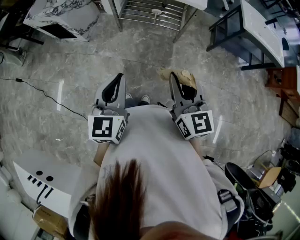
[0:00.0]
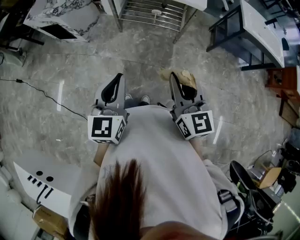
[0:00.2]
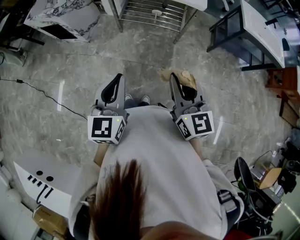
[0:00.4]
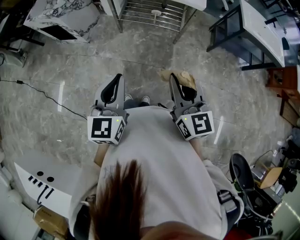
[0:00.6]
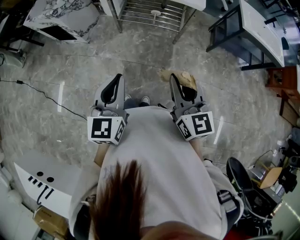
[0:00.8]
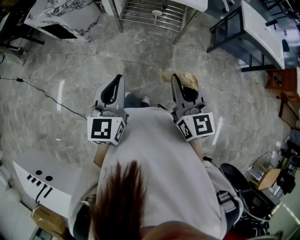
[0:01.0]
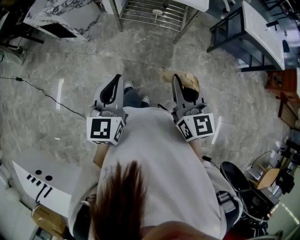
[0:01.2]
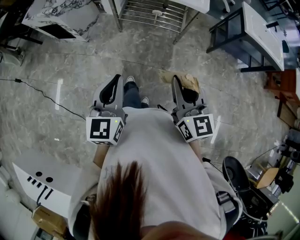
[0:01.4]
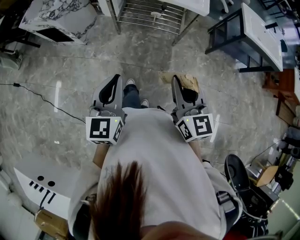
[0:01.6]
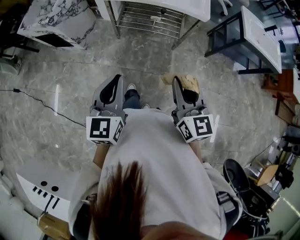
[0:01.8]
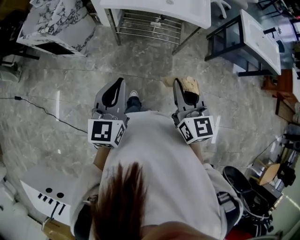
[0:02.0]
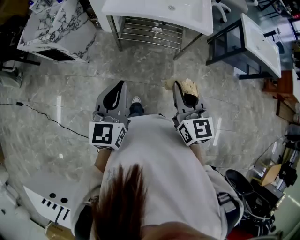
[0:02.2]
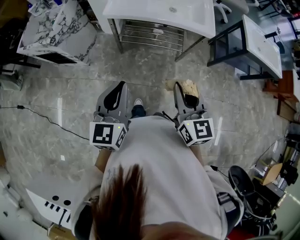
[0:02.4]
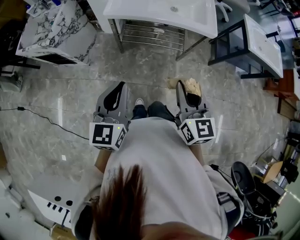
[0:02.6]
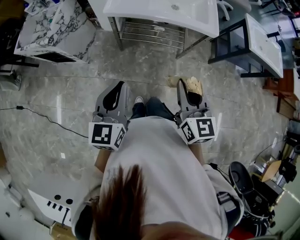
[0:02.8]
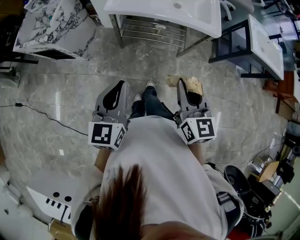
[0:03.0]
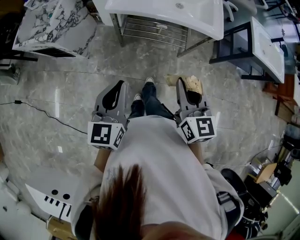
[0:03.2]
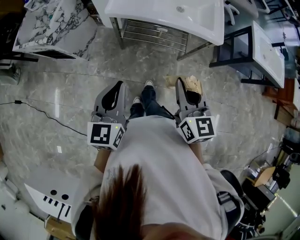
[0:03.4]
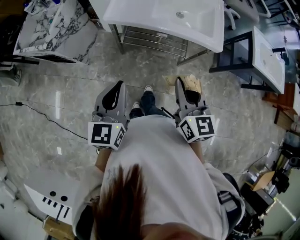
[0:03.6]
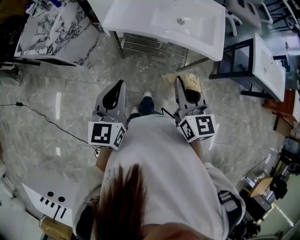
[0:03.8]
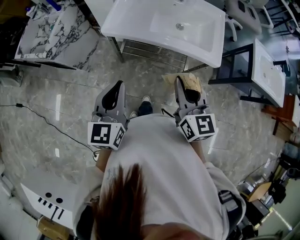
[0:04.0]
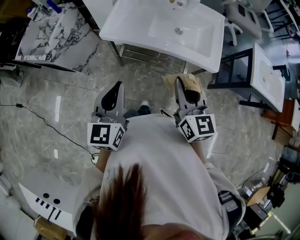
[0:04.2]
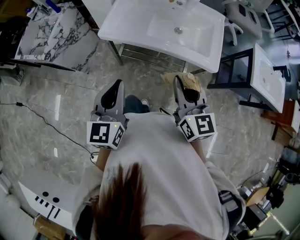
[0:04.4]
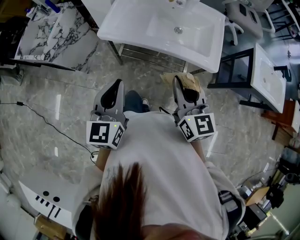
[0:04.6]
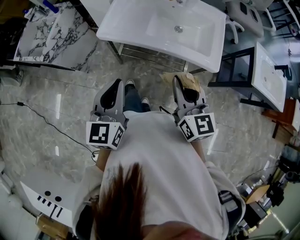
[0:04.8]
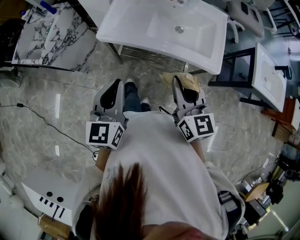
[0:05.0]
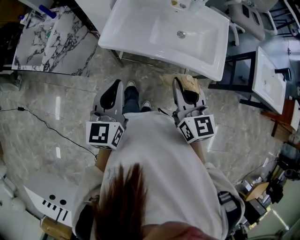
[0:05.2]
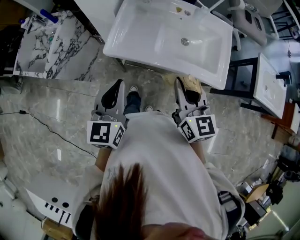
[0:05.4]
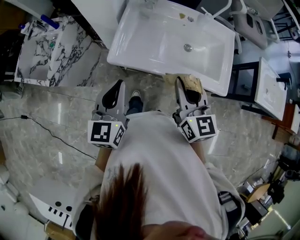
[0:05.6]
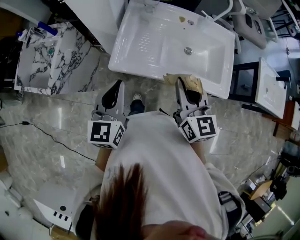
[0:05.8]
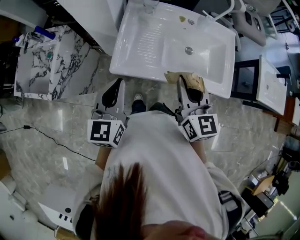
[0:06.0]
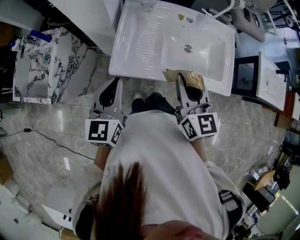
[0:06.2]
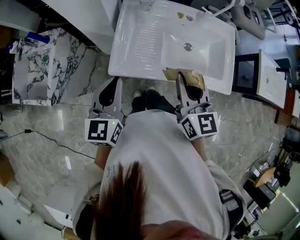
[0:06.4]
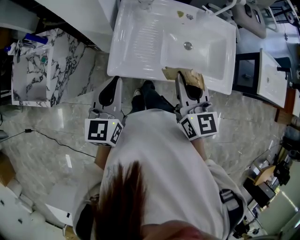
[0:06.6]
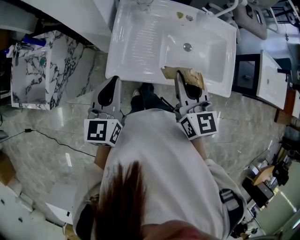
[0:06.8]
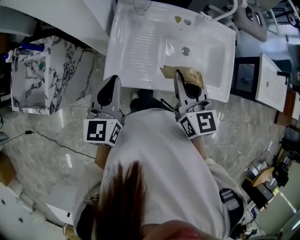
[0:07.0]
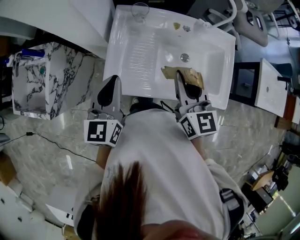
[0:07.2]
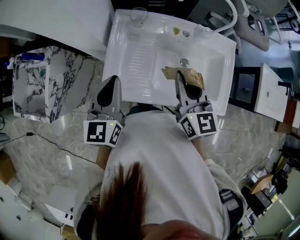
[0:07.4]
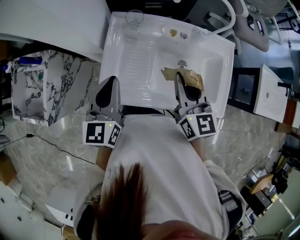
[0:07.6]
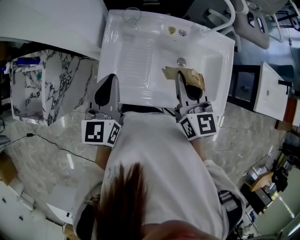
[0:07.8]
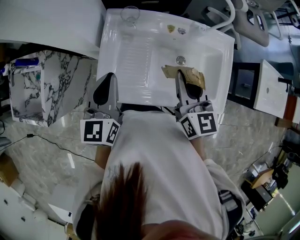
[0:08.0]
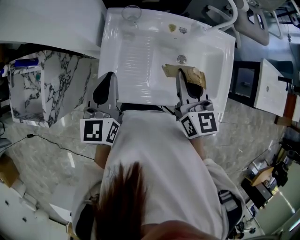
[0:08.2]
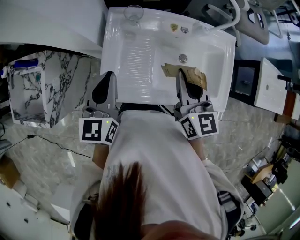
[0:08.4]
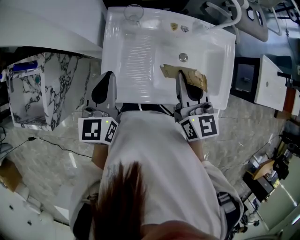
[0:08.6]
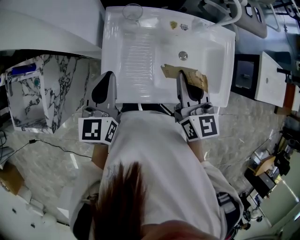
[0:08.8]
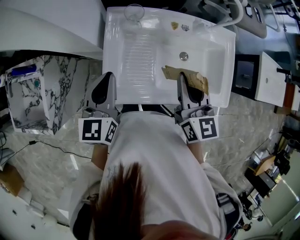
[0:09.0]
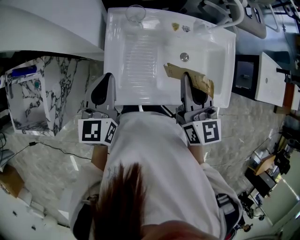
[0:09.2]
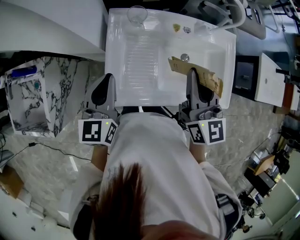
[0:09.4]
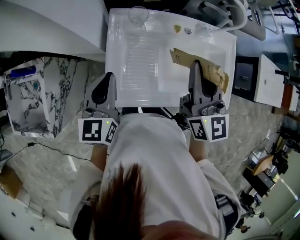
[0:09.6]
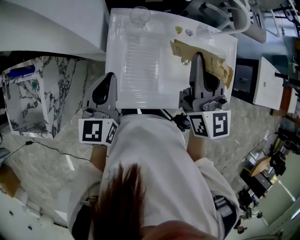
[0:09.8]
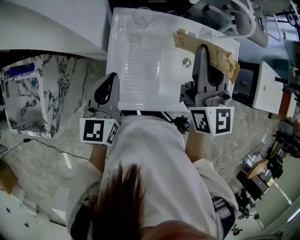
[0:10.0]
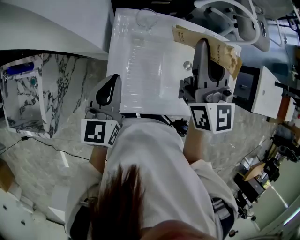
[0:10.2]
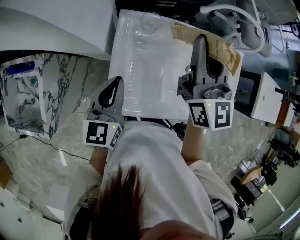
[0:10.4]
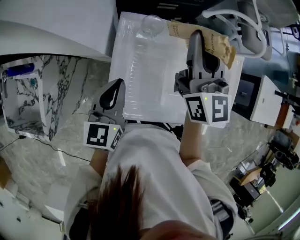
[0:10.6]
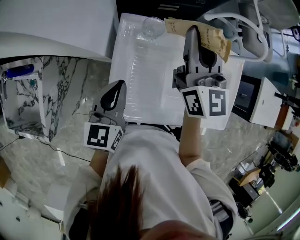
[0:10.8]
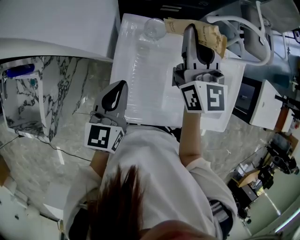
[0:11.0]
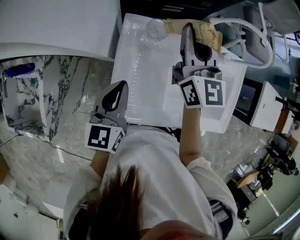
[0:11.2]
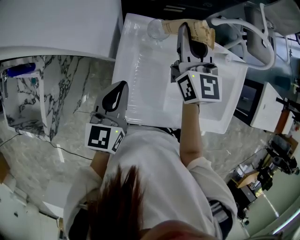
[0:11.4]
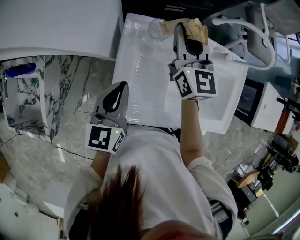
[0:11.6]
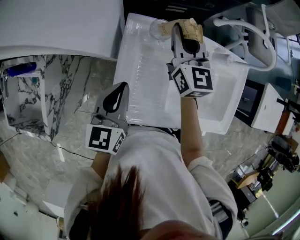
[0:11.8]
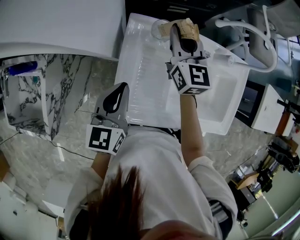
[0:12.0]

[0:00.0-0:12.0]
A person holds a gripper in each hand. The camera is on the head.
0.0 to 1.6 s: The grippers both shift forward by about 5 cm.
1.6 to 3.0 s: Both grippers travel together forward and to the left, about 20 cm.
3.0 to 4.4 s: The grippers both shift forward by some 20 cm.
4.4 to 6.0 s: The two grippers go approximately 25 cm forward and to the left.
6.0 to 7.6 s: The two grippers go about 15 cm forward.
7.6 to 9.0 s: The left gripper ends up approximately 5 cm from where it was.
9.0 to 10.4 s: The left gripper moves approximately 5 cm. The right gripper is displaced forward, upward and to the left by approximately 20 cm.
10.4 to 12.0 s: The right gripper shifts roughly 20 cm downward, forward and to the left.

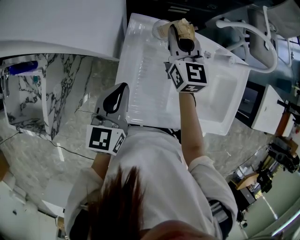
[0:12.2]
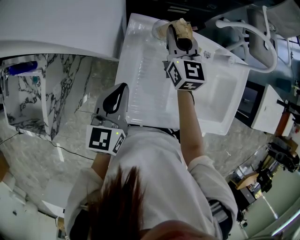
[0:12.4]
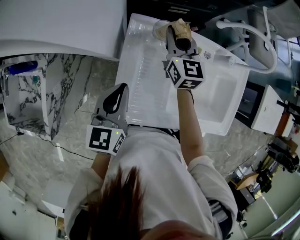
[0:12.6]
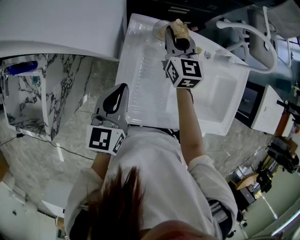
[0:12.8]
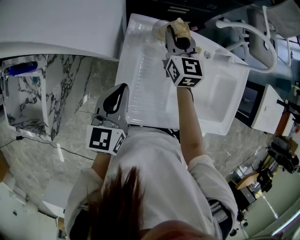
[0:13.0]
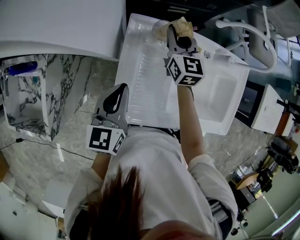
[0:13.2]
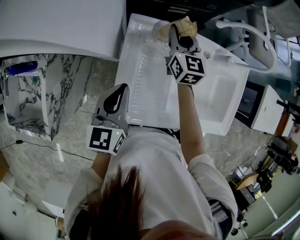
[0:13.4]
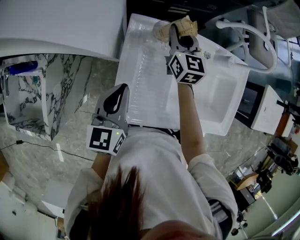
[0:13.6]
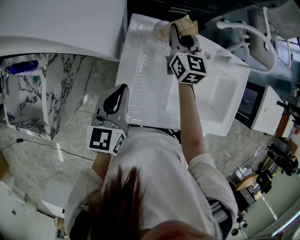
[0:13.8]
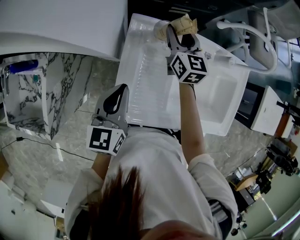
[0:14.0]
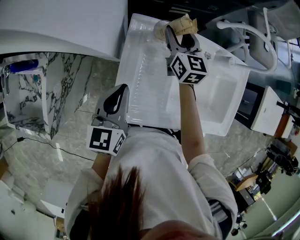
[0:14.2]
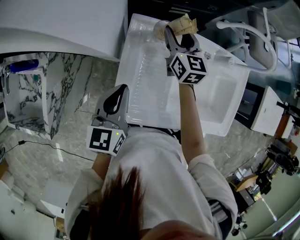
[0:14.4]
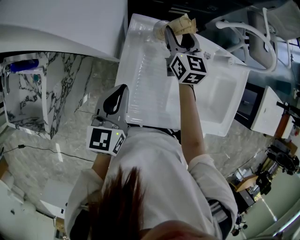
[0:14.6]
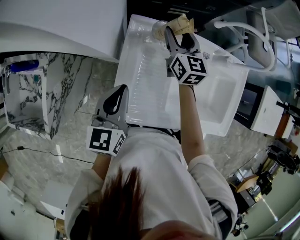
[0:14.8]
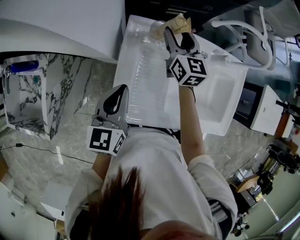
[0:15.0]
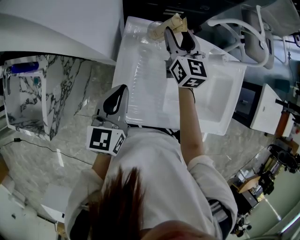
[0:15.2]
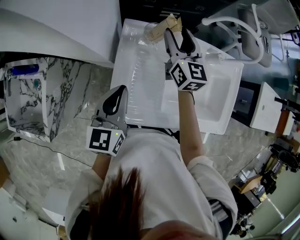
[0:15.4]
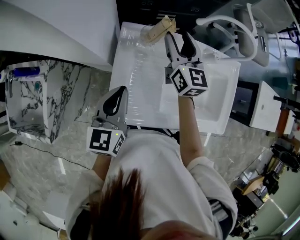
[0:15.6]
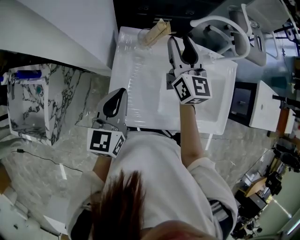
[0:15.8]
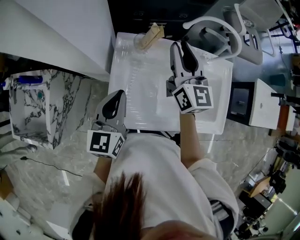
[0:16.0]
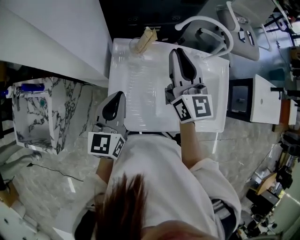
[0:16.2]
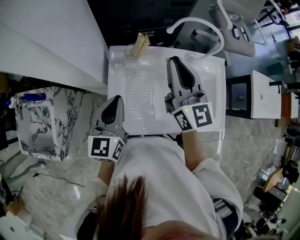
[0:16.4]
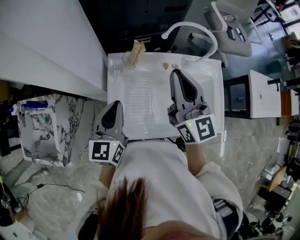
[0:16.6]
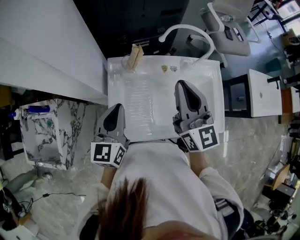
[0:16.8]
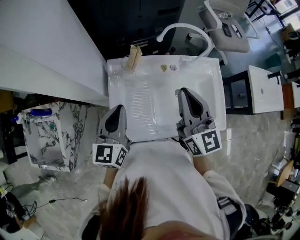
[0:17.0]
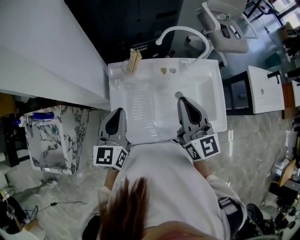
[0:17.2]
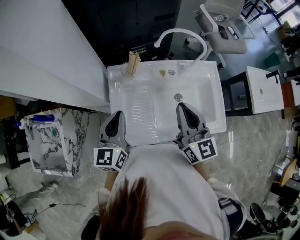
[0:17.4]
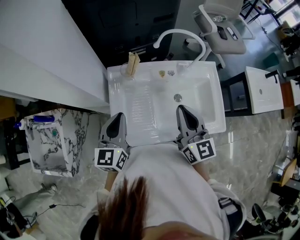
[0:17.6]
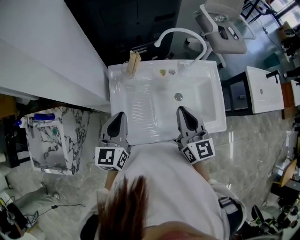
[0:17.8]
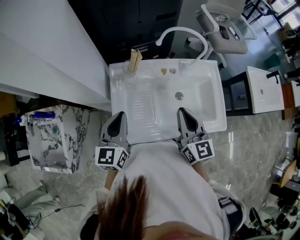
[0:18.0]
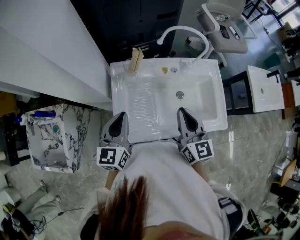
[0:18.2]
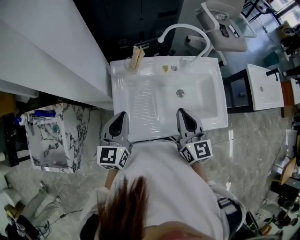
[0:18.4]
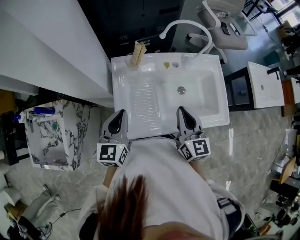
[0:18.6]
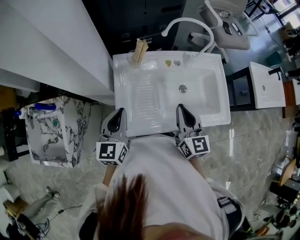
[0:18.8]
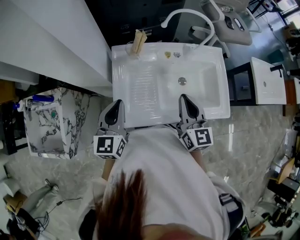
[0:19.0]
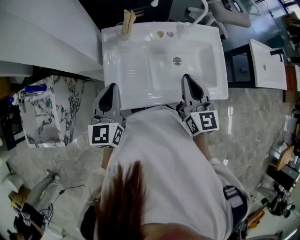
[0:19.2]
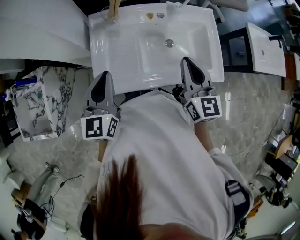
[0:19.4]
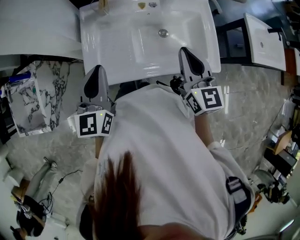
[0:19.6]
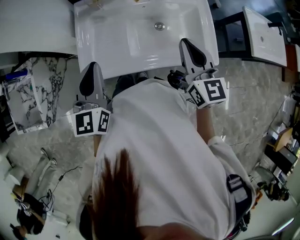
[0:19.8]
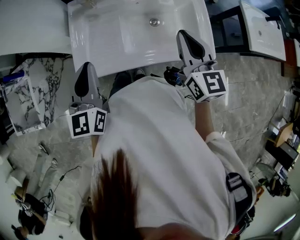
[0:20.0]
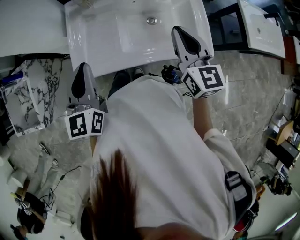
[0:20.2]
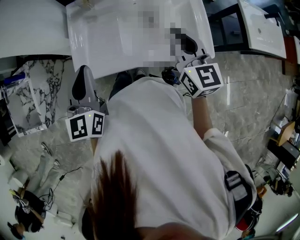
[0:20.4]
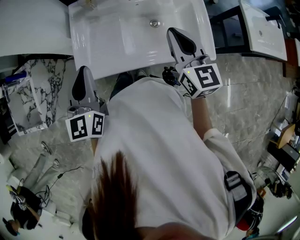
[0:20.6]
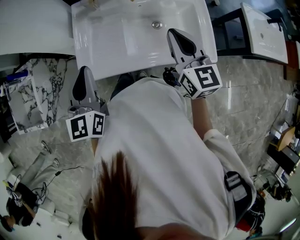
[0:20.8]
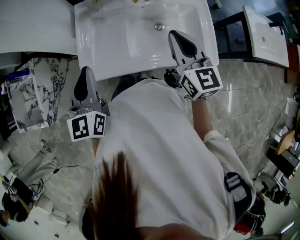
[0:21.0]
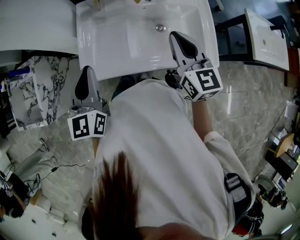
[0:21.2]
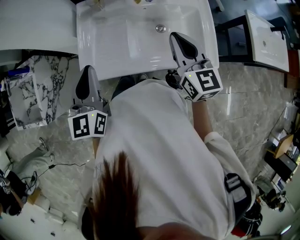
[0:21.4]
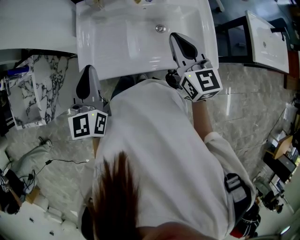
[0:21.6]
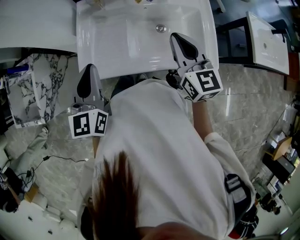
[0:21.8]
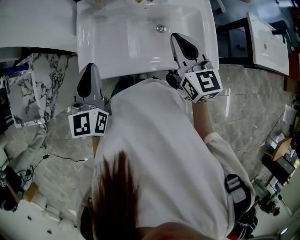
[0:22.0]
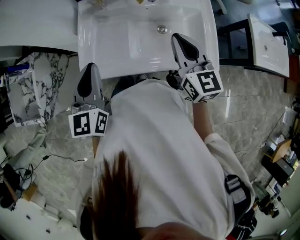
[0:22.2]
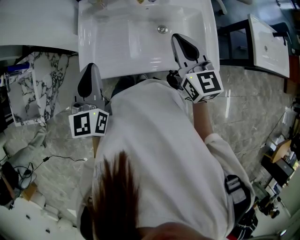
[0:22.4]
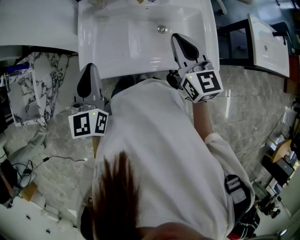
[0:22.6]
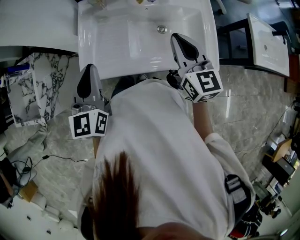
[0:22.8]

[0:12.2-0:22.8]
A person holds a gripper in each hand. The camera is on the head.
12.2 to 13.8 s: The grippers stay close to where they were, moving slightly.
13.8 to 15.2 s: The right gripper opens its fingers.
15.2 to 16.8 s: The right gripper travels upward, backward and to the right by about 30 cm, and closes its fingers; the left gripper moves upward, approximately 10 cm.
16.8 to 18.2 s: The right gripper goes roughly 10 cm downward and backward.
18.2 to 19.8 s: The left gripper heads backward and to the right, covering approximately 10 cm. The right gripper goes about 15 cm to the right and backward.
19.8 to 22.8 s: The grippers stay close to where they were, moving slightly.

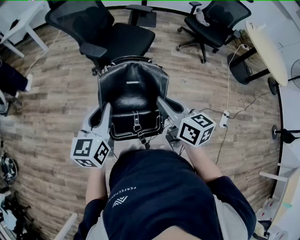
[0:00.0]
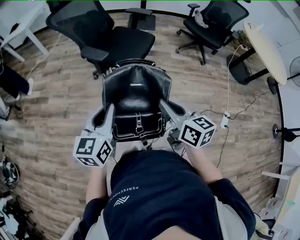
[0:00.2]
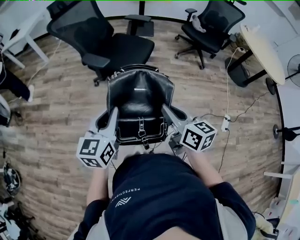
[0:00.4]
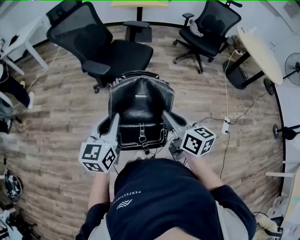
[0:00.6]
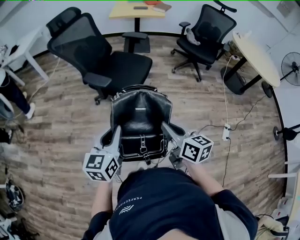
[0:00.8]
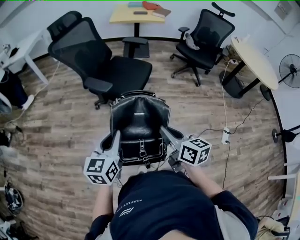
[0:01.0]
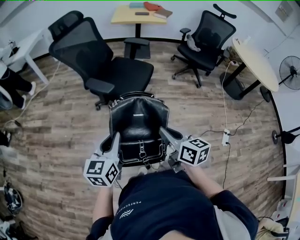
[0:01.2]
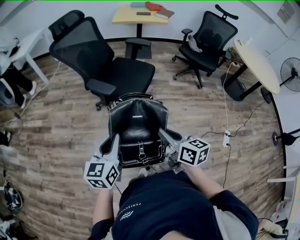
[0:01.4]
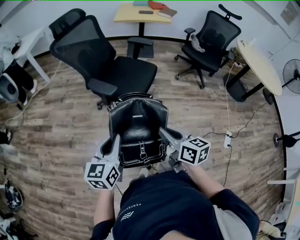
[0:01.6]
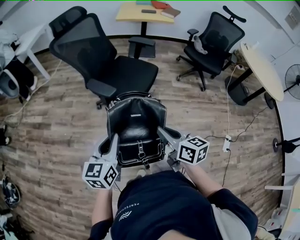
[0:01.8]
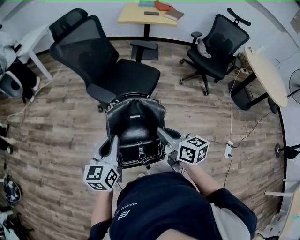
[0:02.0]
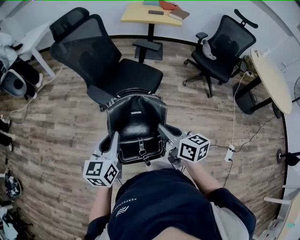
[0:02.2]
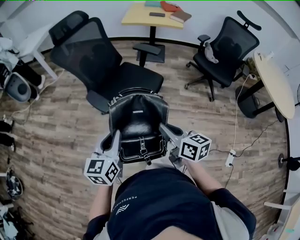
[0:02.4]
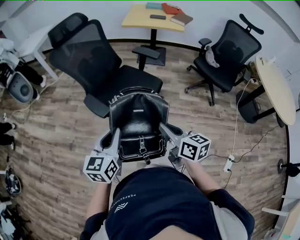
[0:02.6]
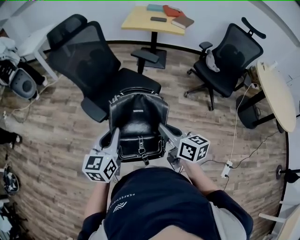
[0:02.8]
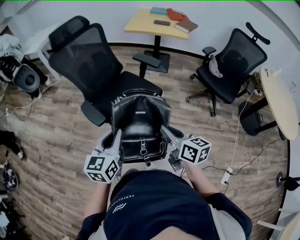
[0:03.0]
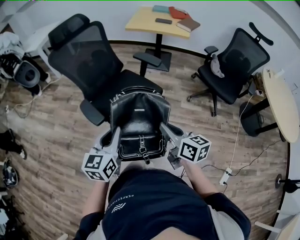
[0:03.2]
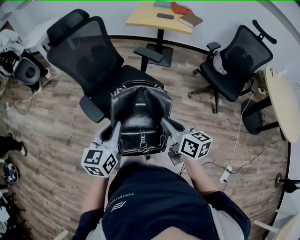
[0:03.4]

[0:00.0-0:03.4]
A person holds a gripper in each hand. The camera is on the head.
0.0 to 1.6 s: Both grippers move forward, approximately 5 cm.
1.6 to 3.4 s: Both grippers move forward and to the right, roughly 30 cm.
